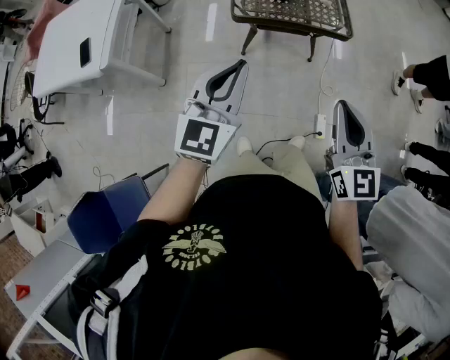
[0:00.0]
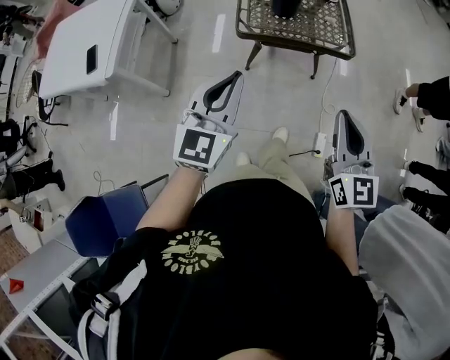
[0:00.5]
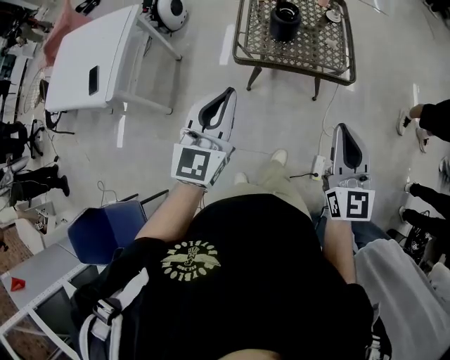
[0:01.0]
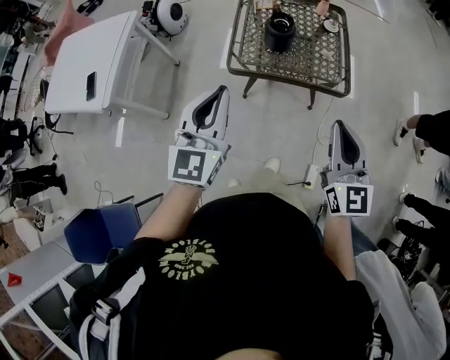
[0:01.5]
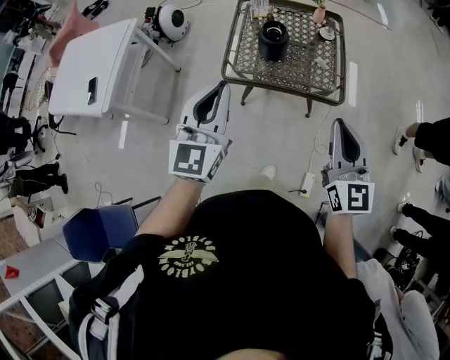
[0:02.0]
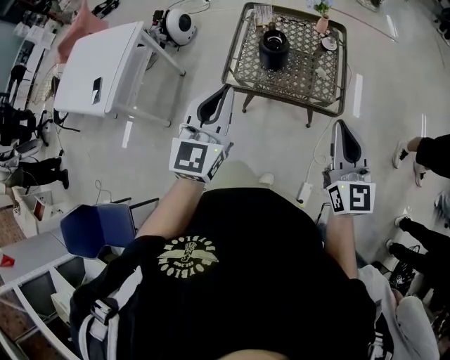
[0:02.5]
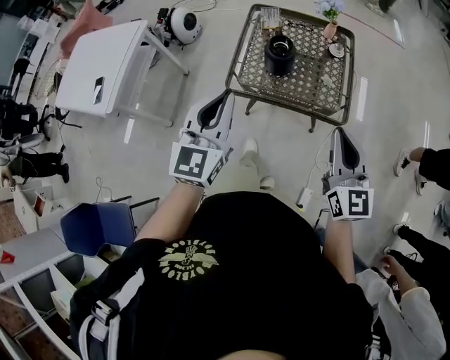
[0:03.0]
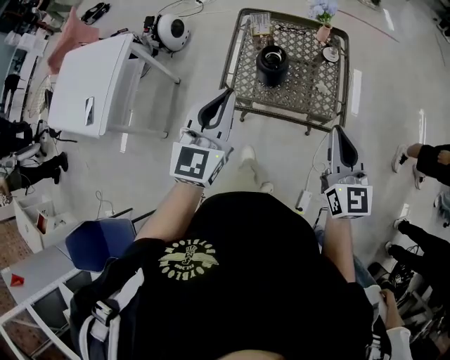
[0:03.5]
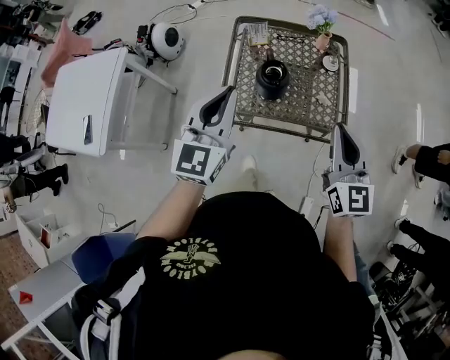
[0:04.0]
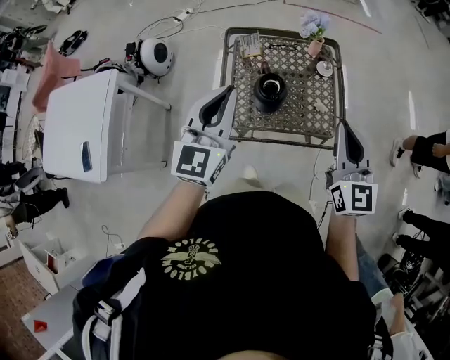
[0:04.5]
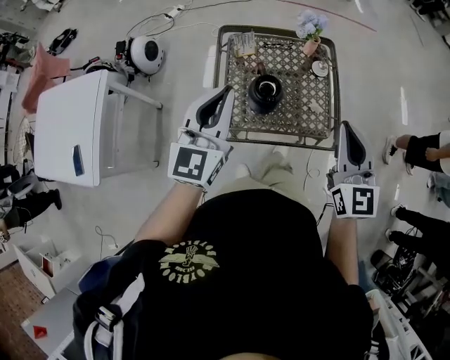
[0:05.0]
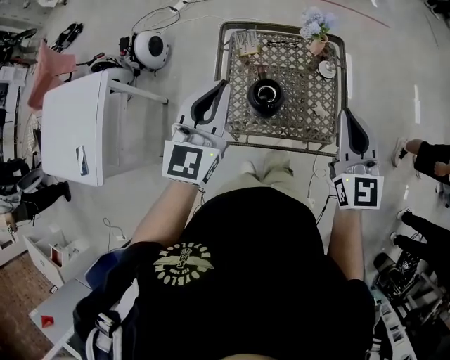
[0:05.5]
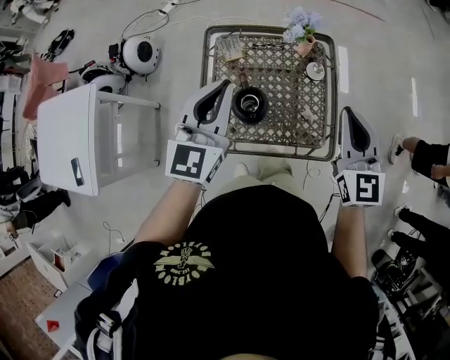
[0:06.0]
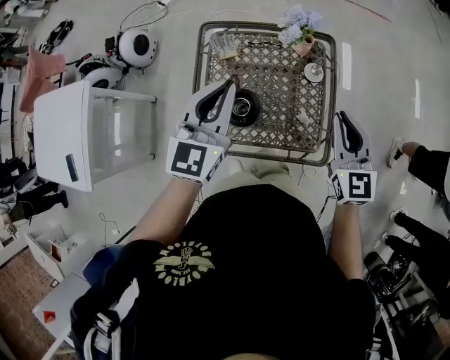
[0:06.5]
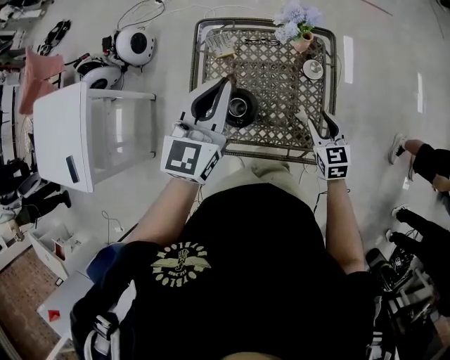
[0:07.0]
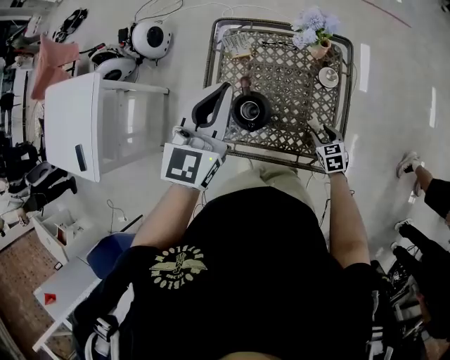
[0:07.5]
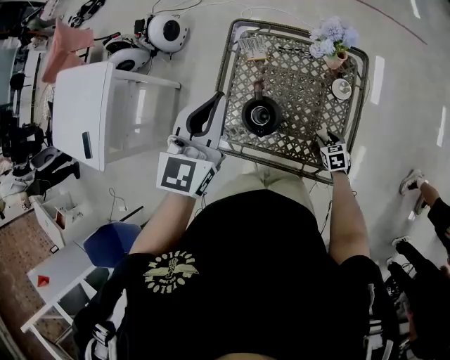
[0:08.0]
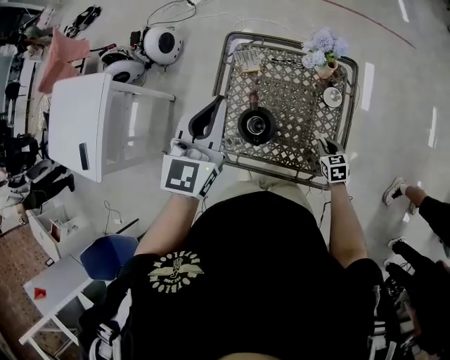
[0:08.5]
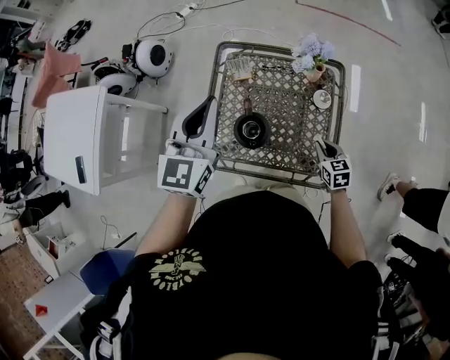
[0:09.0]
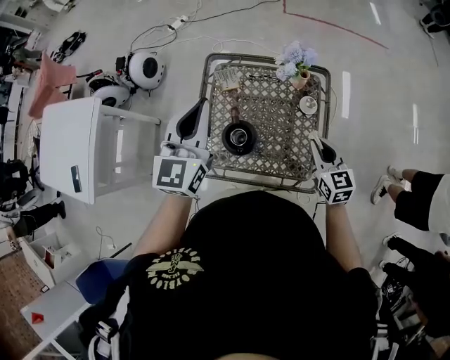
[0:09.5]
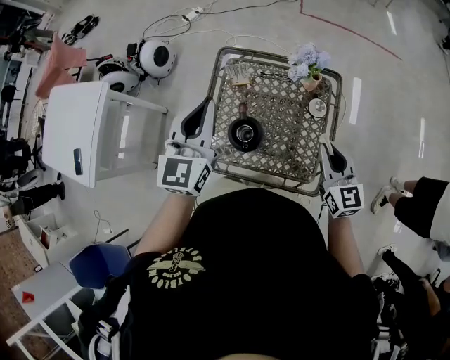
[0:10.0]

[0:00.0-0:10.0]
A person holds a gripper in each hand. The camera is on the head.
0:00.0 to 0:02.0: The two grippers go some 25 cm forward and to the right.
0:02.0 to 0:04.0: The two grippers go some 20 cm forward.
0:04.0 to 0:06.0: The two grippers go approximately 20 cm forward.
0:06.0 to 0:08.0: The right gripper moves downward, some 50 cm, points its fingers approximately 50 degrees further downward, and opens; the left gripper moves roughly 5 cm.
0:08.0 to 0:10.0: The right gripper is displaced upward by roughly 35 cm, tips its fingers upward by approximately 40 degrees, and closes up.

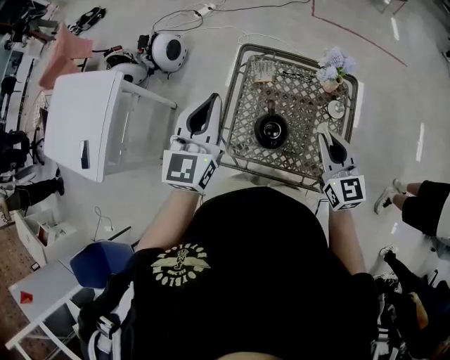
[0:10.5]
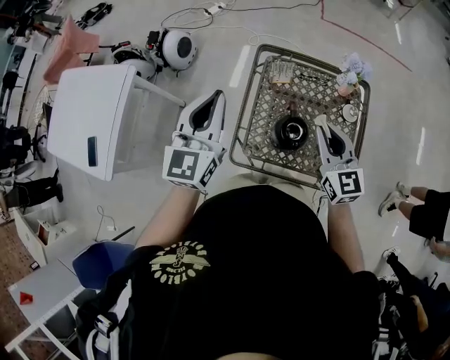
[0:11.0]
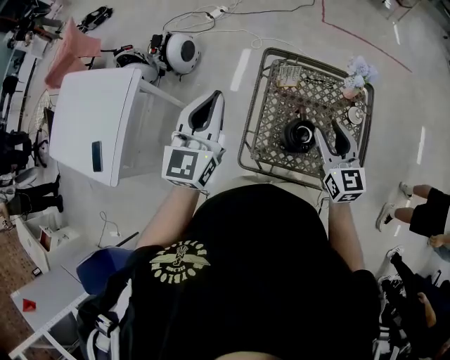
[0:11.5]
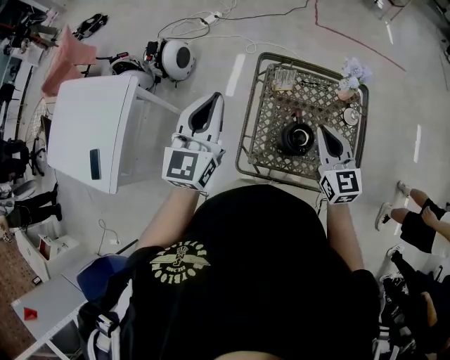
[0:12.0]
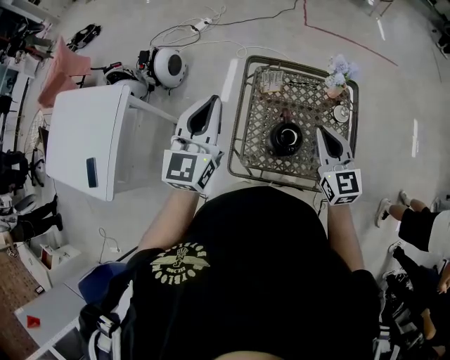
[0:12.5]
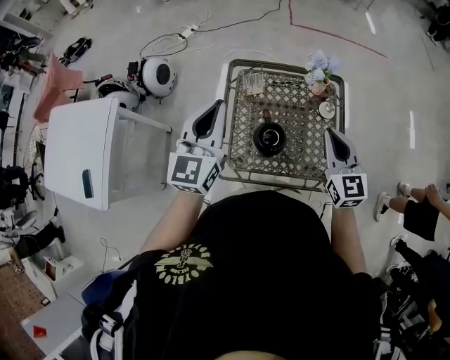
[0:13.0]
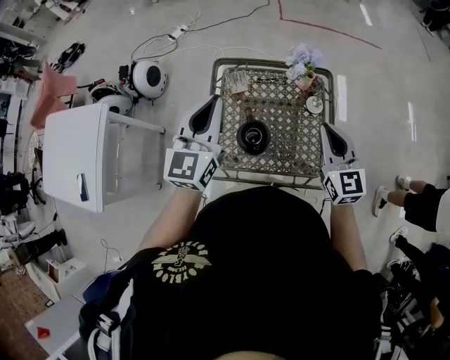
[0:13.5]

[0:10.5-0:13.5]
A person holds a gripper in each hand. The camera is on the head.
0:10.5 to 0:12.0: Both grippers move to the left, some 10 cm. The right gripper opens, then closes again.
0:12.0 to 0:13.5: The grippers both shift to the right by roughly 20 cm.

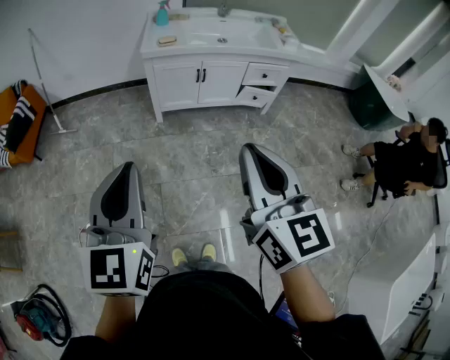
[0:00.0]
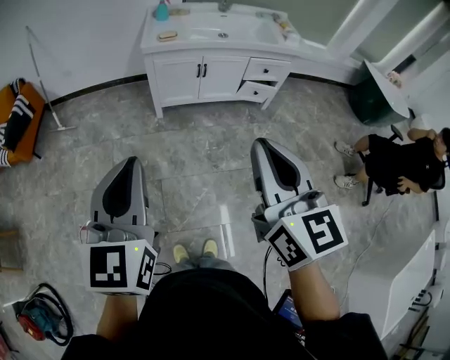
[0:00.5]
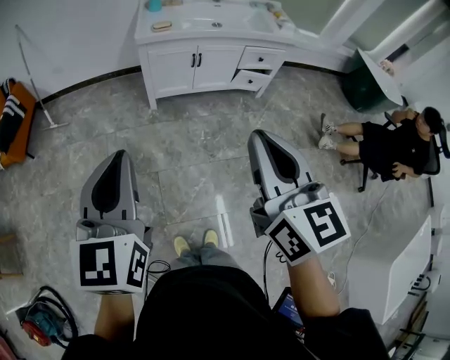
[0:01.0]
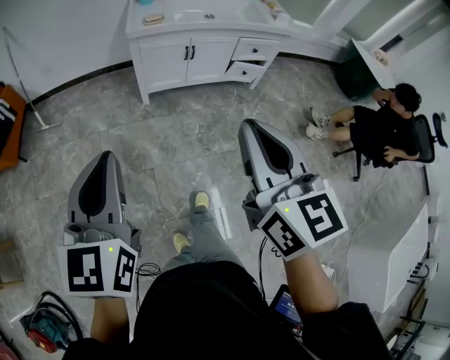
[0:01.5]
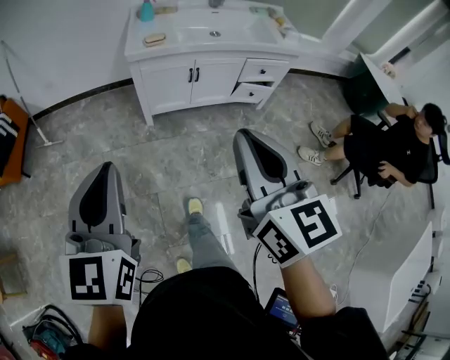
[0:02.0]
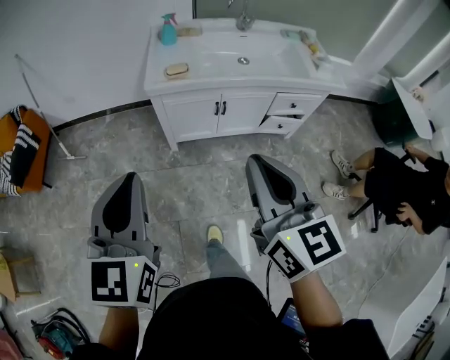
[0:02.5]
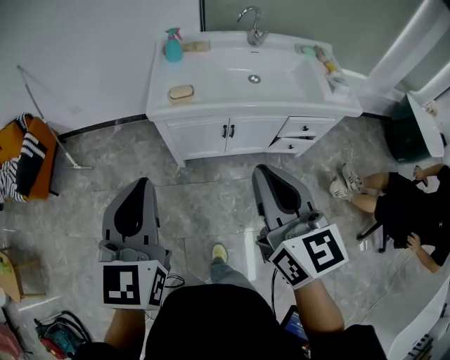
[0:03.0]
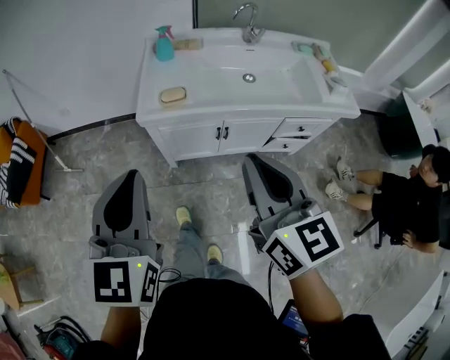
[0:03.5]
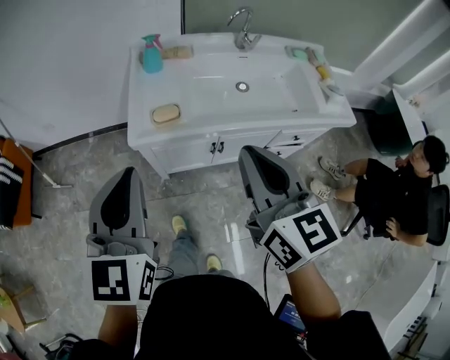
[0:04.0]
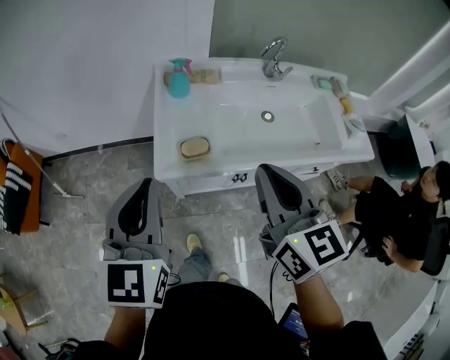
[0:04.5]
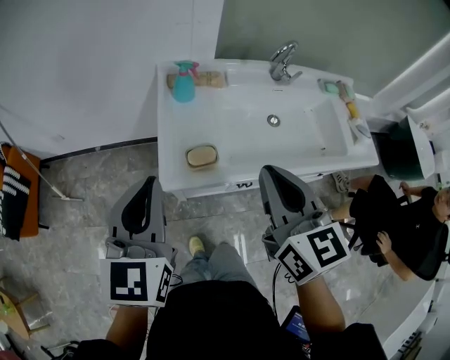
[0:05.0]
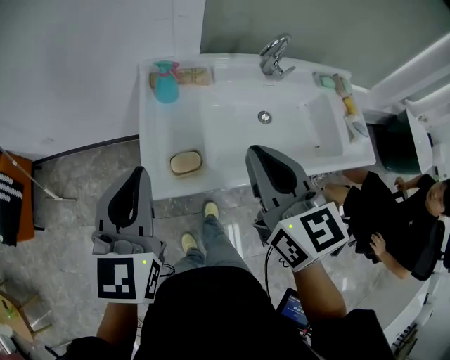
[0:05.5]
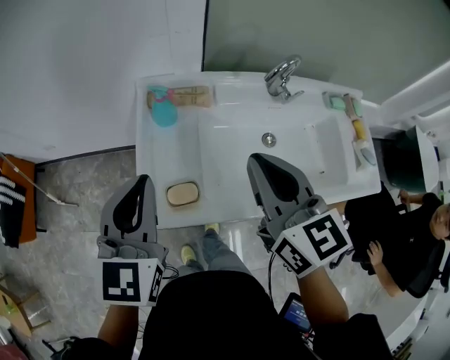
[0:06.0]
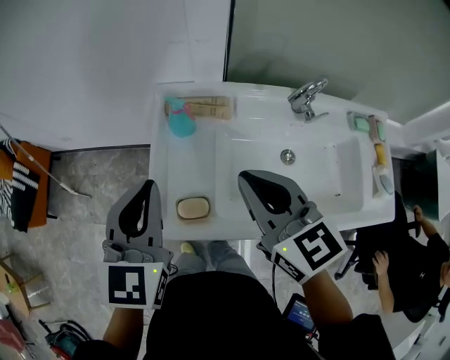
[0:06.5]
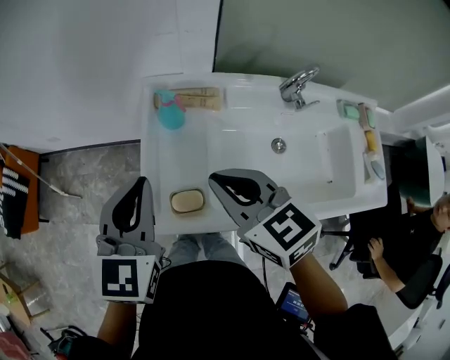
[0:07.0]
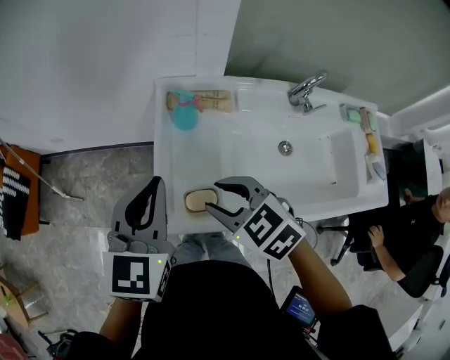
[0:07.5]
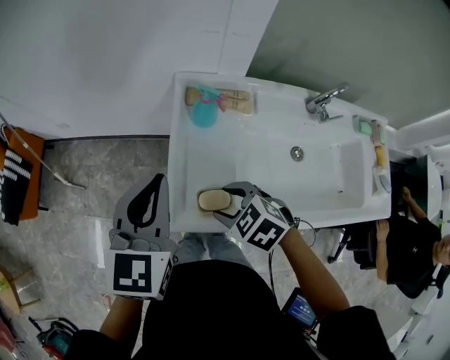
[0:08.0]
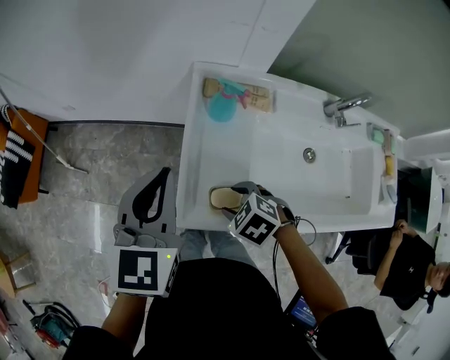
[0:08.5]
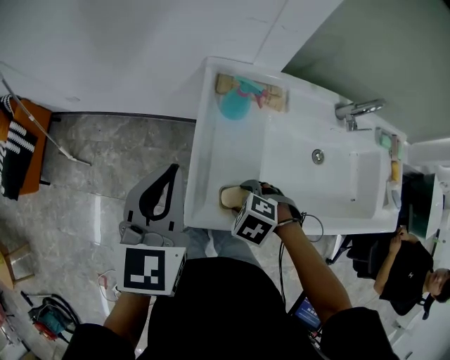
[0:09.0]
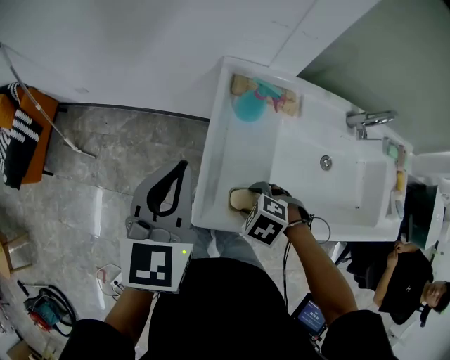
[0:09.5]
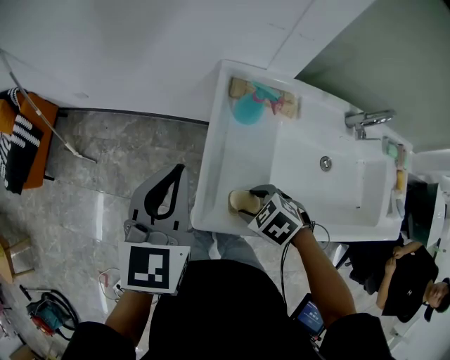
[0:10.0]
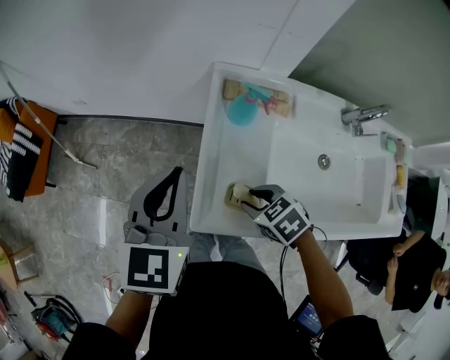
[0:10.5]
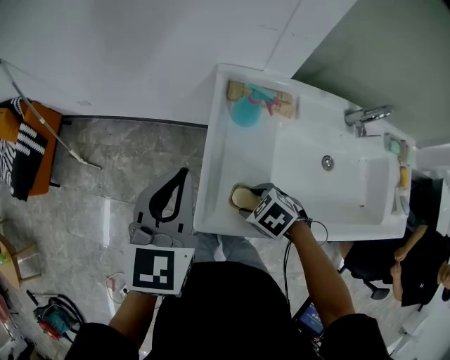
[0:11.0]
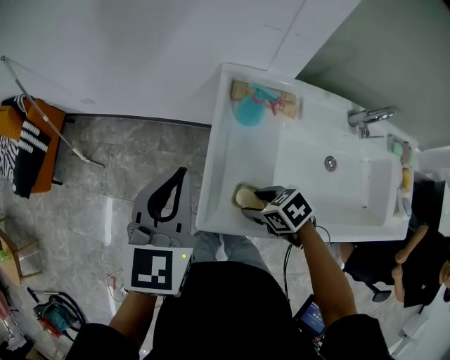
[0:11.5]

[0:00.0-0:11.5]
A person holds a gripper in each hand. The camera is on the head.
0:00.0 to 0:02.0: Both grippers travel together forward, about 15 cm.
0:02.0 to 0:04.0: The pair of grippers is taken forward, about 40 cm.
0:04.0 to 0:06.0: Both grippers move forward, some 30 cm.
0:06.0 to 0:07.5: The right gripper heads downward and to the left, covering about 20 cm, angles its fingers downward, by some 30 degrees, and opens its fingers. Meanwhile the left gripper moves roughly 5 cm.
0:07.5 to 0:09.5: The right gripper moves downward, roughly 15 cm, angles its fingers downward, by some 40 degrees, and opens its fingers; the left gripper shifts by roughly 10 cm.
0:09.5 to 0:11.5: The right gripper rotates roughly 40 degrees, and closes, then reopens.

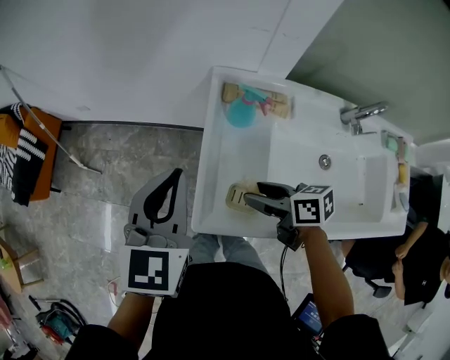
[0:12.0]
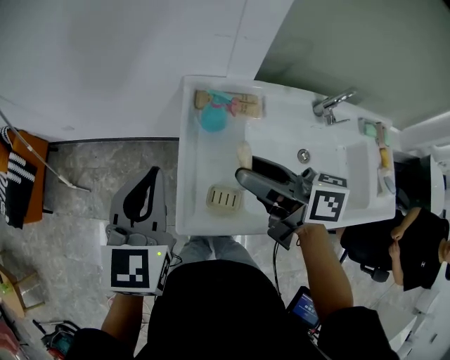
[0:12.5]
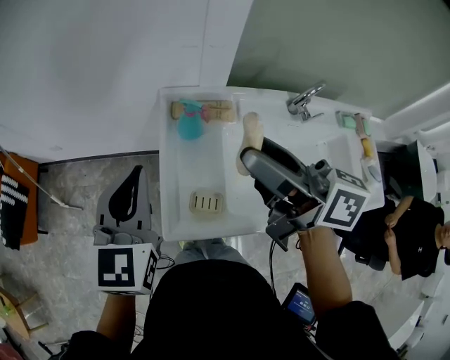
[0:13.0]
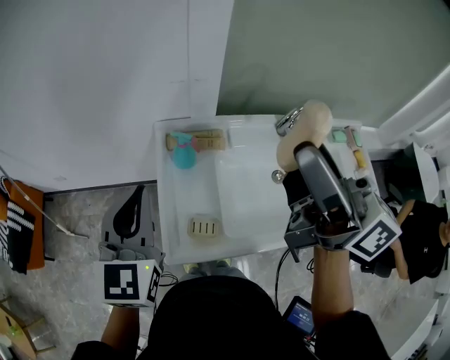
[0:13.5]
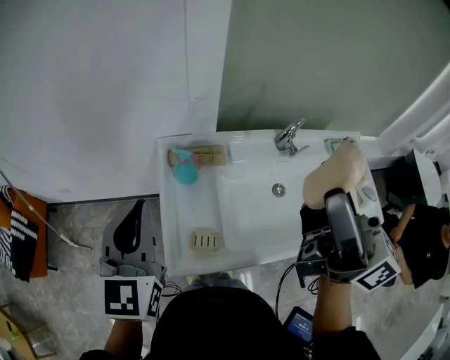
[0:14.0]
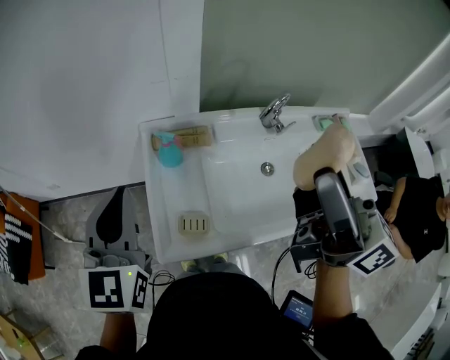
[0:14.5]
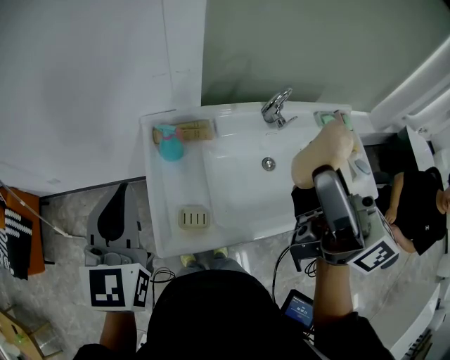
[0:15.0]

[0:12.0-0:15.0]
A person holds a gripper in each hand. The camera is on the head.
0:12.0 to 0:13.5: The right gripper goes approximately 40 cm upward, and tilts its fingers about 50 degrees upward. Meanwhile the left gripper travels upward and to the right by some 10 cm.
0:13.5 to 0:15.0: The right gripper is displaced backward by some 5 cm.
